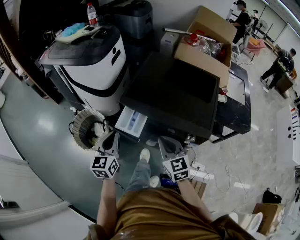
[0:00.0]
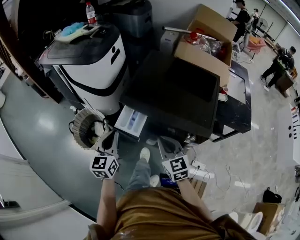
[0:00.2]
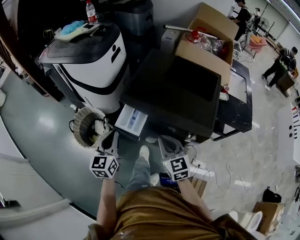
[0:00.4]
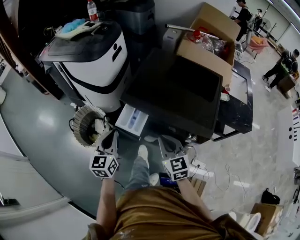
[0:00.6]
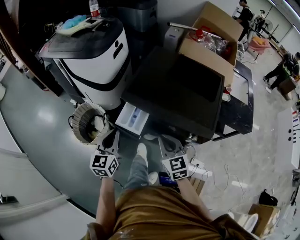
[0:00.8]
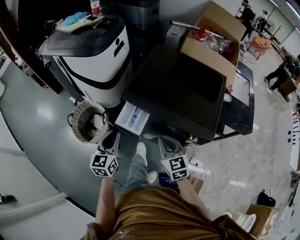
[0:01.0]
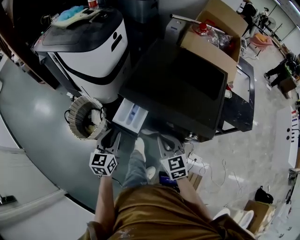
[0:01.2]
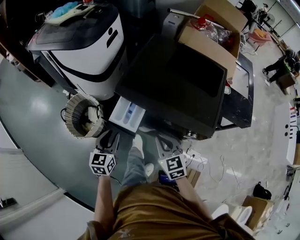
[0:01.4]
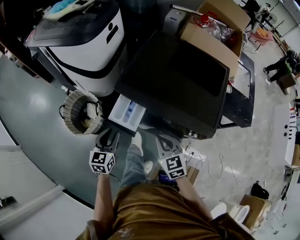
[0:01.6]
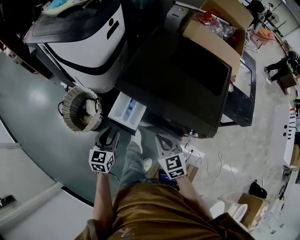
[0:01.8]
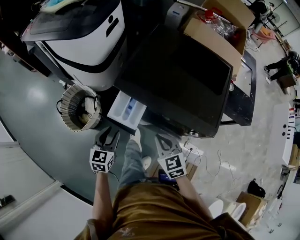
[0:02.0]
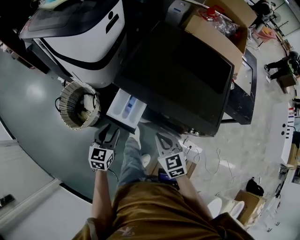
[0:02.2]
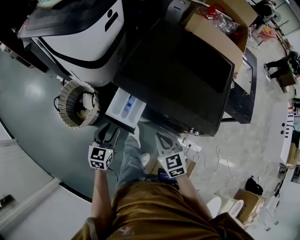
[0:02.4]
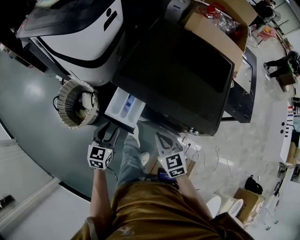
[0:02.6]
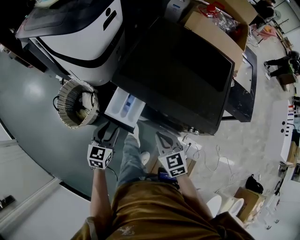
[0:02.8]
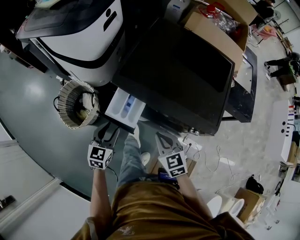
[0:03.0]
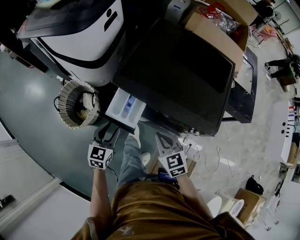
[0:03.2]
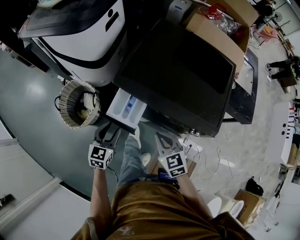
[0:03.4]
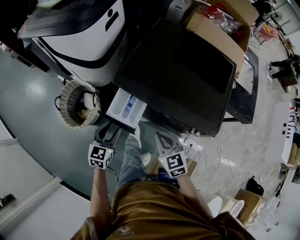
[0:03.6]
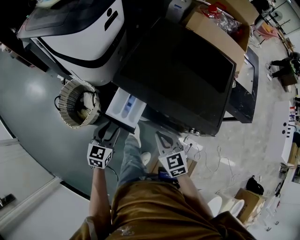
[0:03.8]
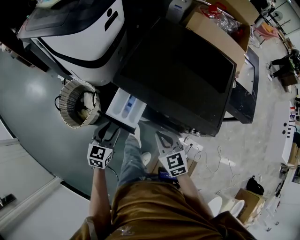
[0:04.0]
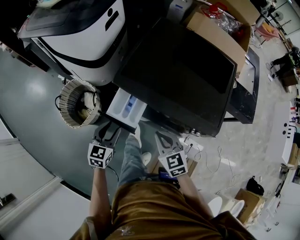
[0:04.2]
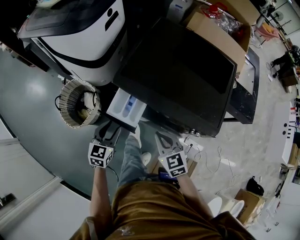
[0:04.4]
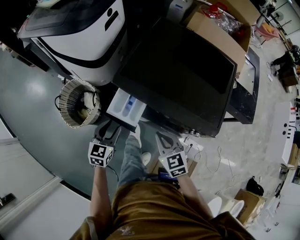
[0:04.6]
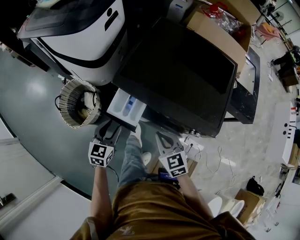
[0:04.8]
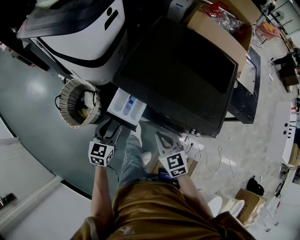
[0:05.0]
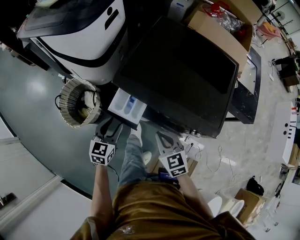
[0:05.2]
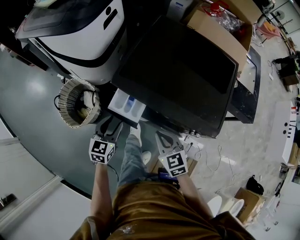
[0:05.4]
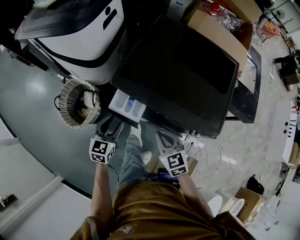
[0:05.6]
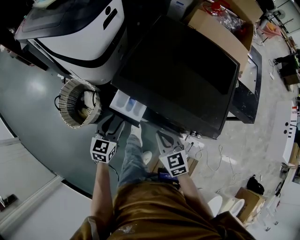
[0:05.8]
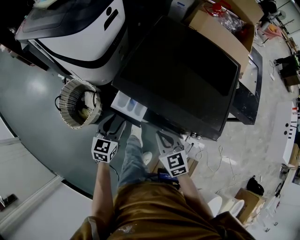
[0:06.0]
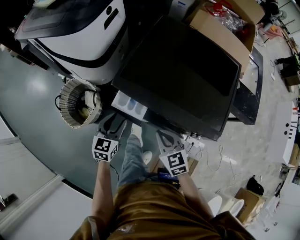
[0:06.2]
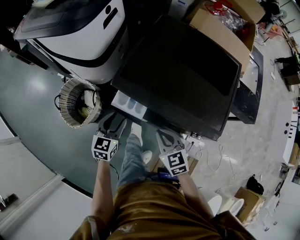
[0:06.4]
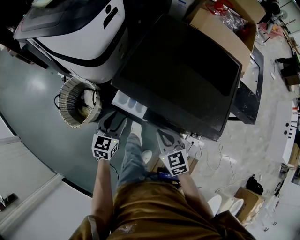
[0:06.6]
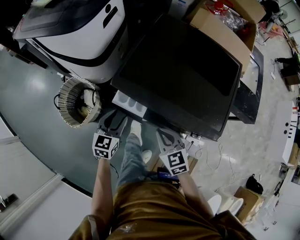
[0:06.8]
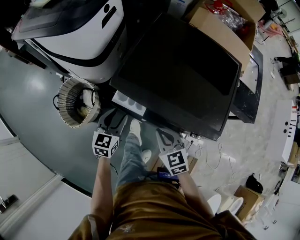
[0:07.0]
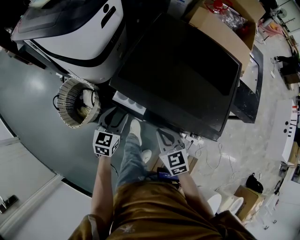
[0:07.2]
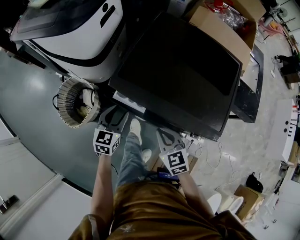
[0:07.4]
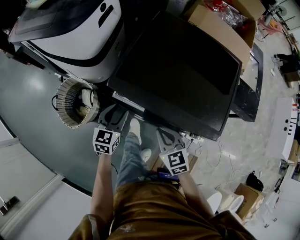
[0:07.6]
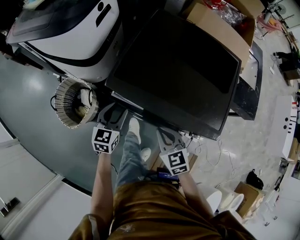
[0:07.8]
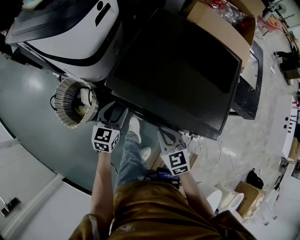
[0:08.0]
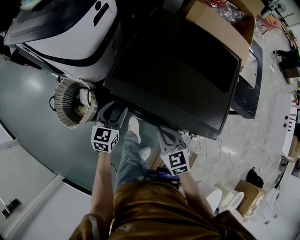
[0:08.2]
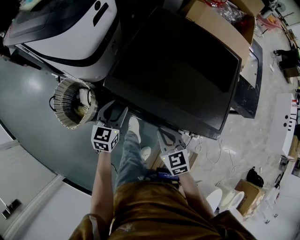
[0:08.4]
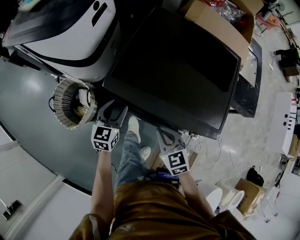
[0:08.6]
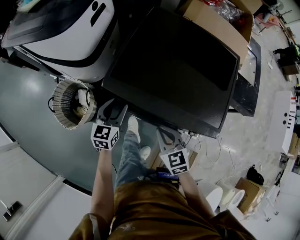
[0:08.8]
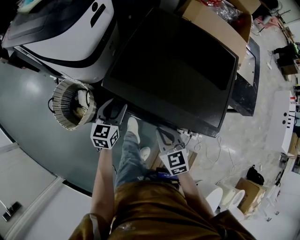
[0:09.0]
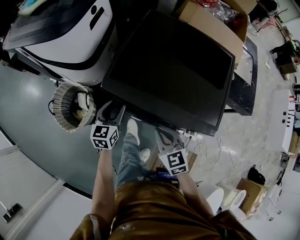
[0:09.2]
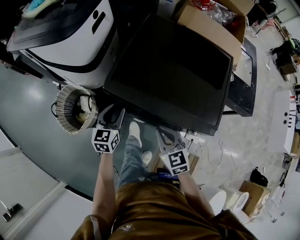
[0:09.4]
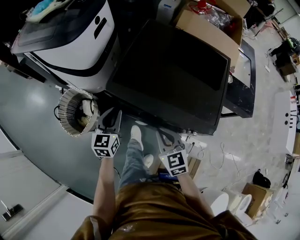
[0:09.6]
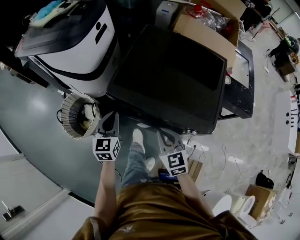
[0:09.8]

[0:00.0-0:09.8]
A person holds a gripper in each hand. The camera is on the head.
0:00.0 to 0:01.4: The right gripper is displaced downward by roughly 5 cm. The left gripper is displaced downward by roughly 10 cm, and opens.
0:01.4 to 0:02.8: The left gripper is displaced downward by approximately 5 cm.
0:02.8 to 0:04.2: Both grippers stay put.
0:04.2 to 0:05.6: There are only small adjustments of the grippers.
0:05.6 to 0:07.0: The grippers stay close to where they were, moving slightly.
0:07.0 to 0:08.4: The grippers stay close to where they were, moving slightly.
0:08.4 to 0:09.8: The grippers both shift upward by roughly 5 cm. The left gripper closes.

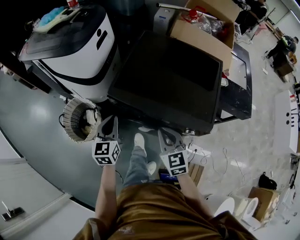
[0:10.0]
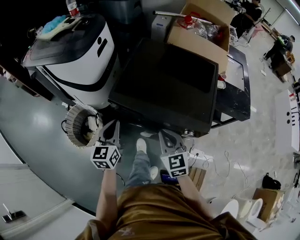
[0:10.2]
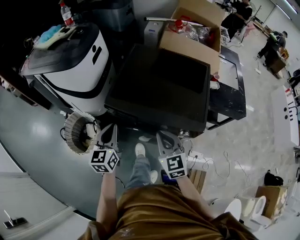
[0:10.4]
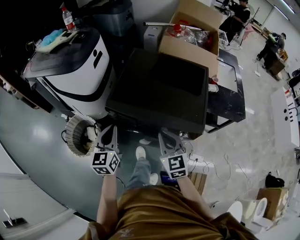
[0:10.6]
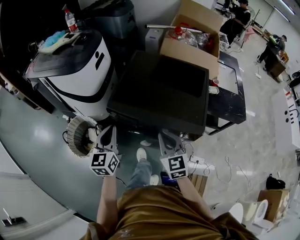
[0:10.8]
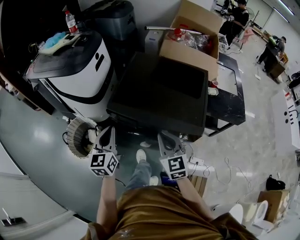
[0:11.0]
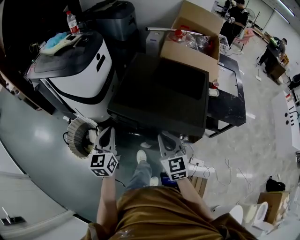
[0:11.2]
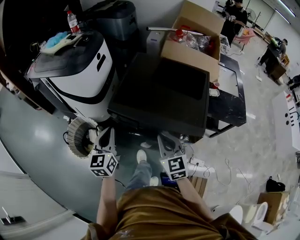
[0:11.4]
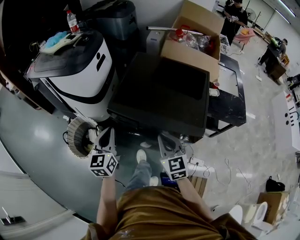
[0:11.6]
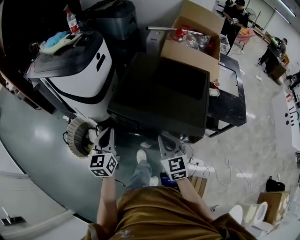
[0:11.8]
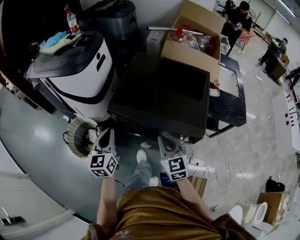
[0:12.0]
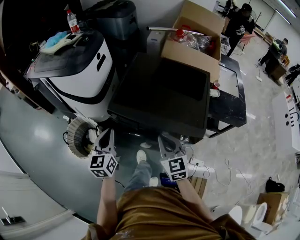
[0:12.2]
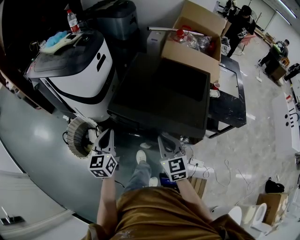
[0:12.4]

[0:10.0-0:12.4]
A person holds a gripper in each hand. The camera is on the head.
0:10.0 to 0:11.2: The grippers both shift upward by about 10 cm.
0:11.2 to 0:12.4: The grippers move only a little.

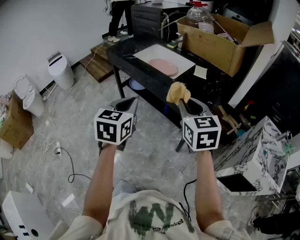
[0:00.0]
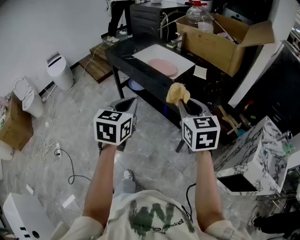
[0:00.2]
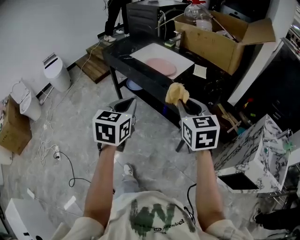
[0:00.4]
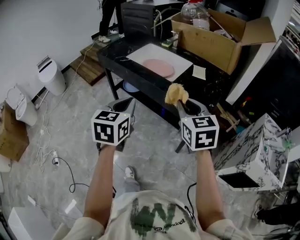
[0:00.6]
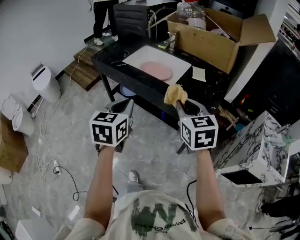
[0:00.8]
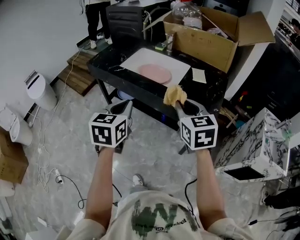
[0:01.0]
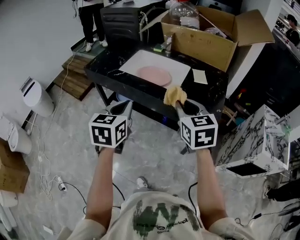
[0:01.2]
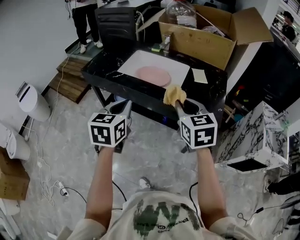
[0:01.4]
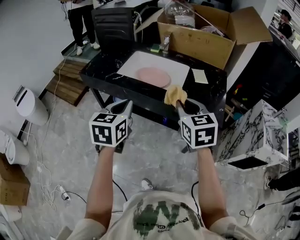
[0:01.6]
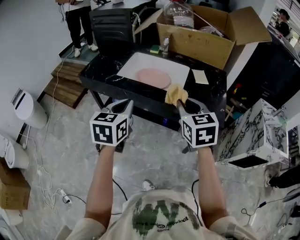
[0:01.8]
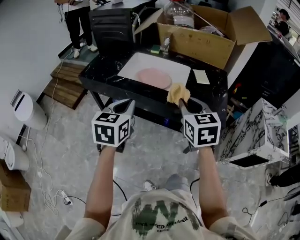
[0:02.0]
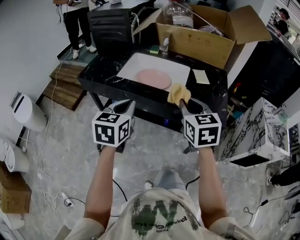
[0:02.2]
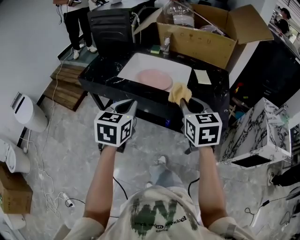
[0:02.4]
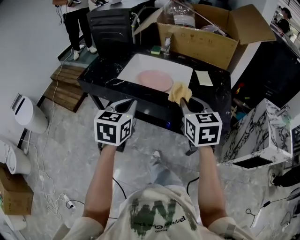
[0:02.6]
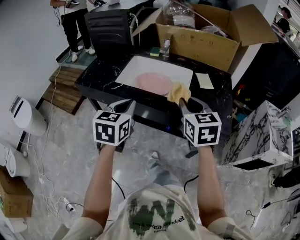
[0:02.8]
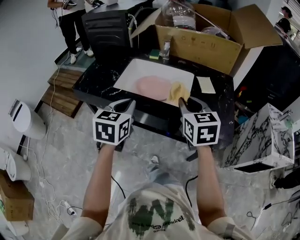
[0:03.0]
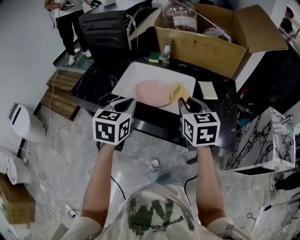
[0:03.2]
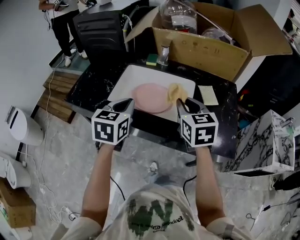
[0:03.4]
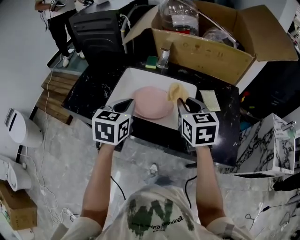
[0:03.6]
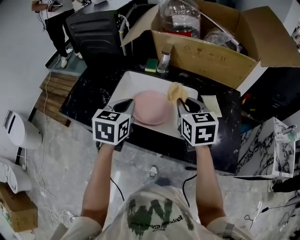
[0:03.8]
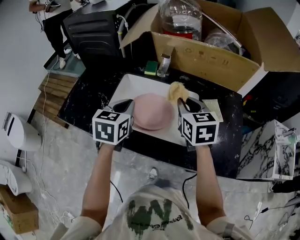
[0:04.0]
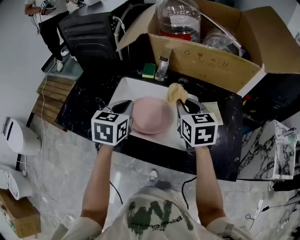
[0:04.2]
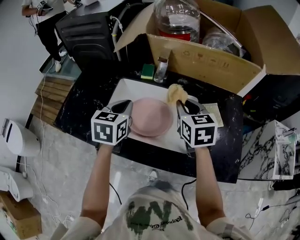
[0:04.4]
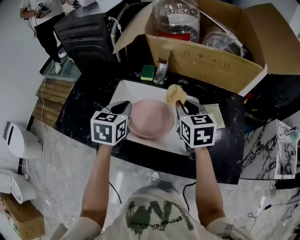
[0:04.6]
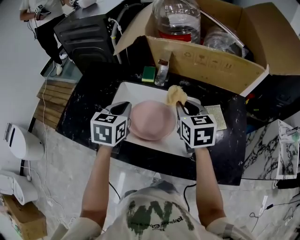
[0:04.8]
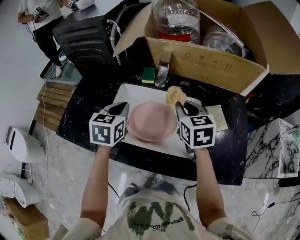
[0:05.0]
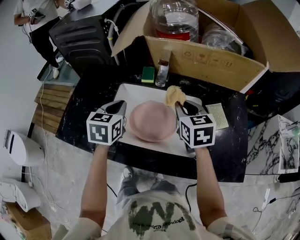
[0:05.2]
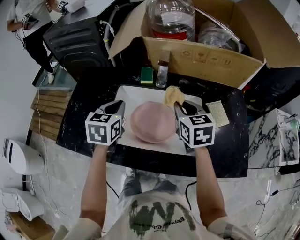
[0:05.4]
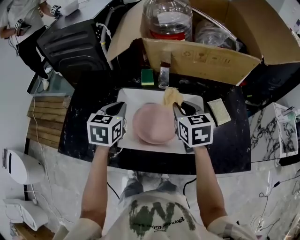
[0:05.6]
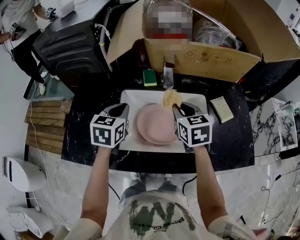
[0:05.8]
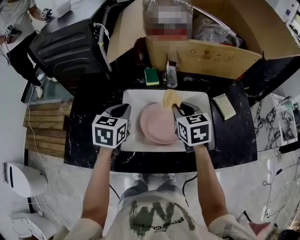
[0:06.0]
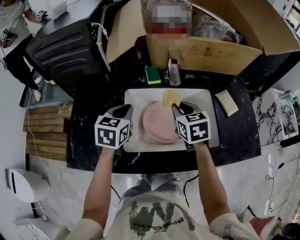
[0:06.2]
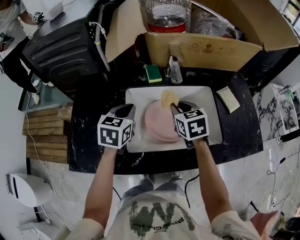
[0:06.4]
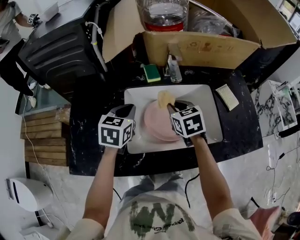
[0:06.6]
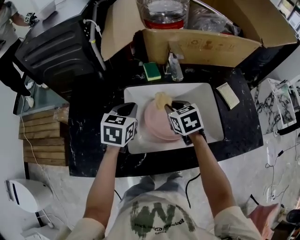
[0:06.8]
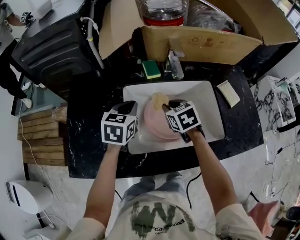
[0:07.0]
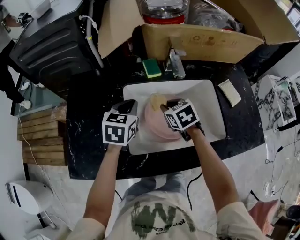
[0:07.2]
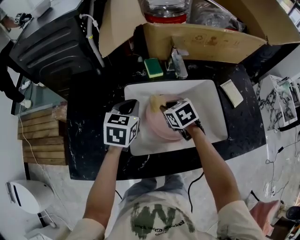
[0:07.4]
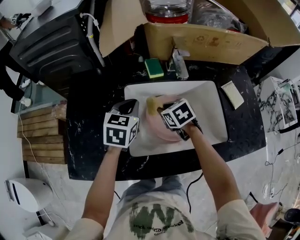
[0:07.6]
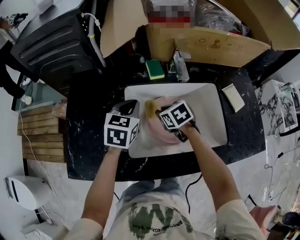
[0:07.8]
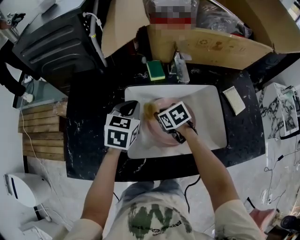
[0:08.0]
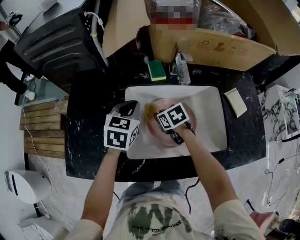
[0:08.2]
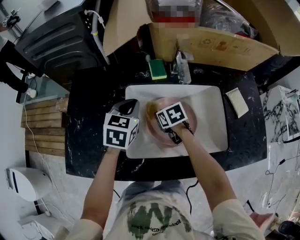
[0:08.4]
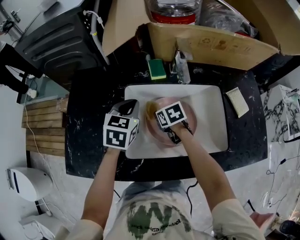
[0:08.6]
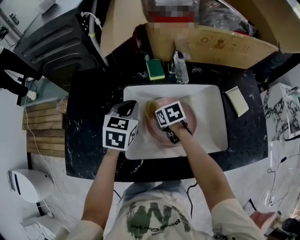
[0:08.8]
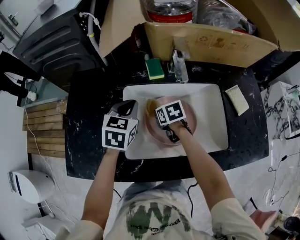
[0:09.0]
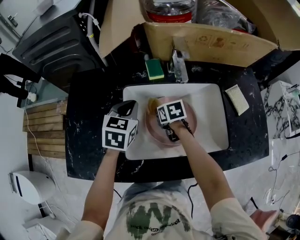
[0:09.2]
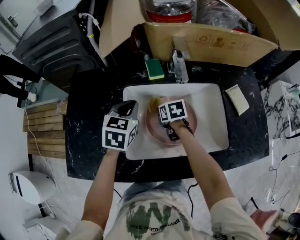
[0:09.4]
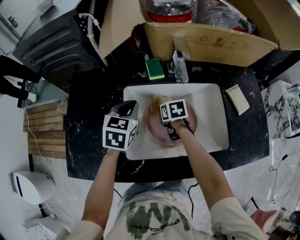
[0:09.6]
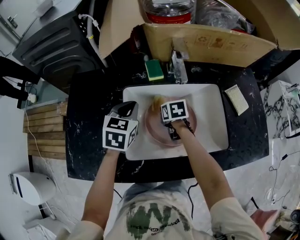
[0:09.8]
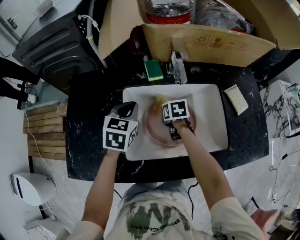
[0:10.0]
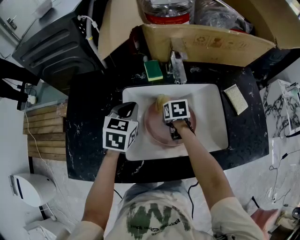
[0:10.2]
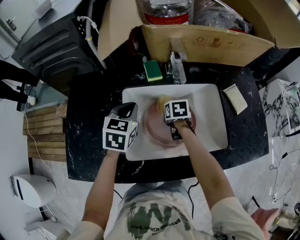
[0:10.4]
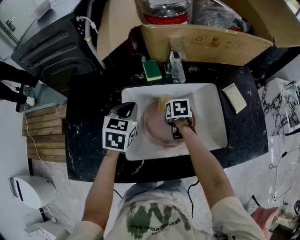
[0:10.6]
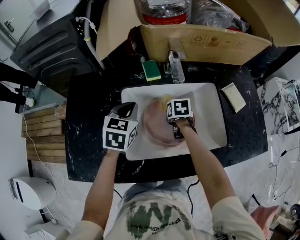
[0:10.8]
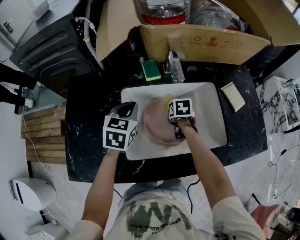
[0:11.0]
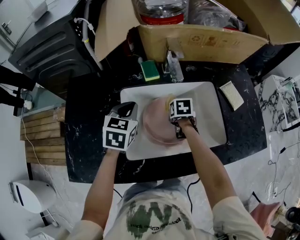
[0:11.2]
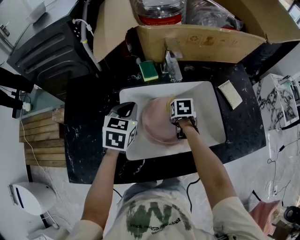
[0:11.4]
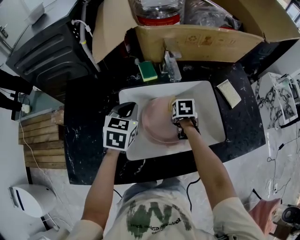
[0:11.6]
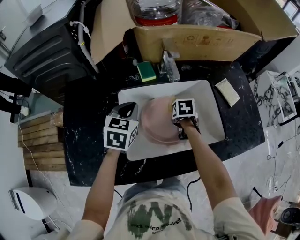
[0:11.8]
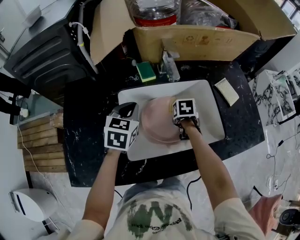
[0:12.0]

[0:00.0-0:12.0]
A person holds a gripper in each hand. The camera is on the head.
0:00.0 to 0:01.6: The two grippers go approximately 20 cm forward and to the left.
0:01.6 to 0:03.0: The grippers both shift forward by some 10 cm.
0:03.0 to 0:04.4: Both grippers move forward, some 25 cm.
0:04.4 to 0:06.0: The left gripper goes about 10 cm to the left and forward, while the right gripper goes some 10 cm to the left.
0:06.0 to 0:07.6: The left gripper shifts by some 5 cm. The right gripper heads downward and to the left, covering approximately 15 cm, and turns by approximately 30 degrees.
0:07.6 to 0:09.0: The right gripper heads downward, covering about 5 cm.
0:09.0 to 0:10.4: The right gripper shifts about 5 cm to the right.
0:10.4 to 0:12.0: The right gripper moves to the right, about 10 cm.
